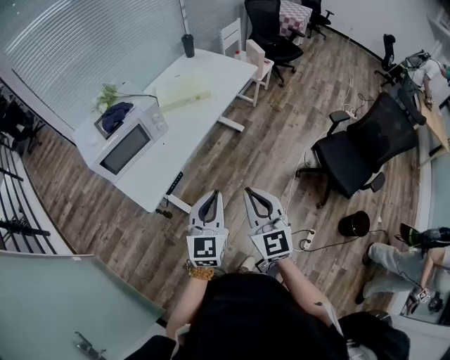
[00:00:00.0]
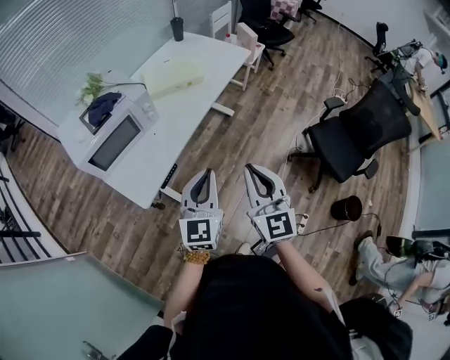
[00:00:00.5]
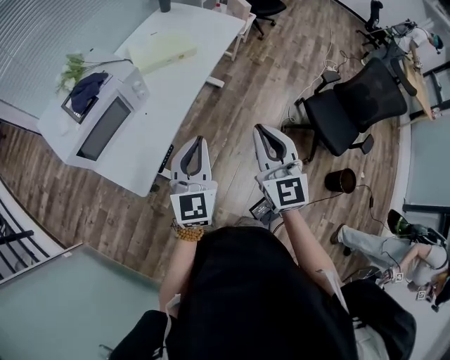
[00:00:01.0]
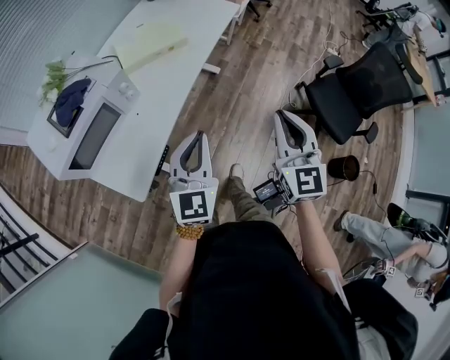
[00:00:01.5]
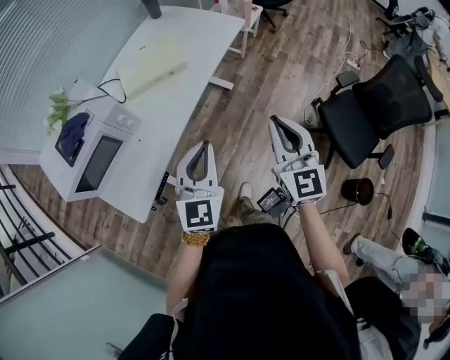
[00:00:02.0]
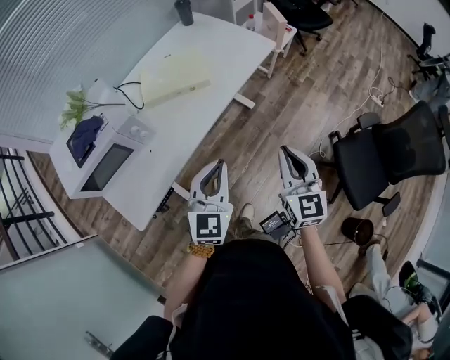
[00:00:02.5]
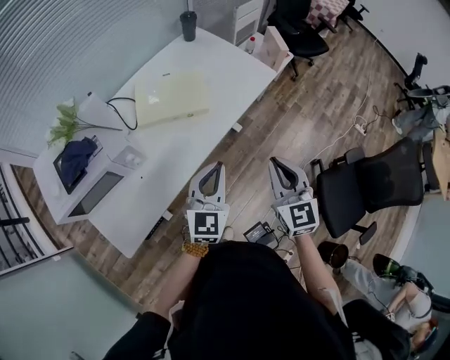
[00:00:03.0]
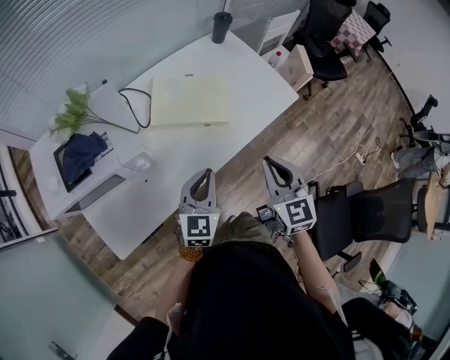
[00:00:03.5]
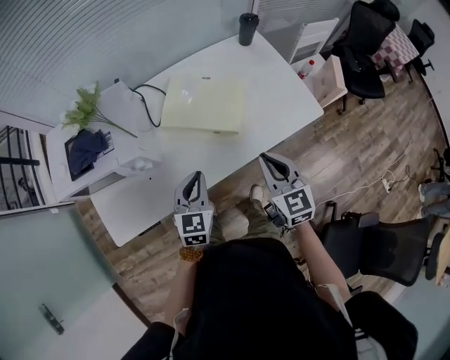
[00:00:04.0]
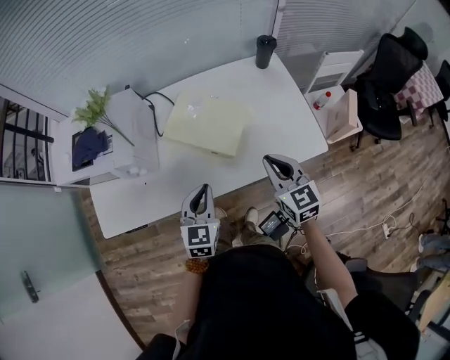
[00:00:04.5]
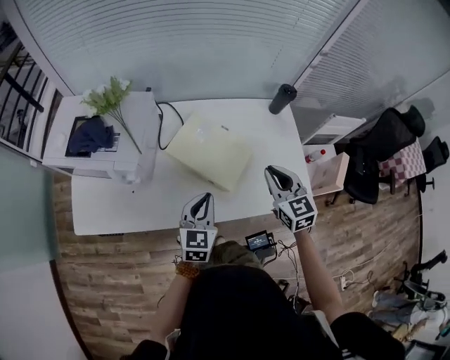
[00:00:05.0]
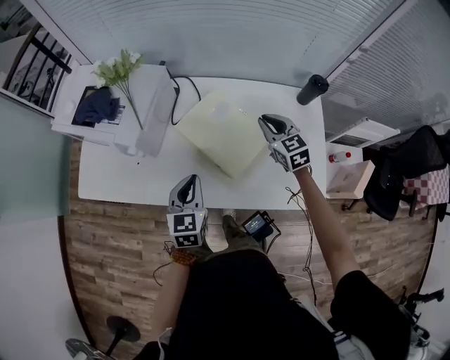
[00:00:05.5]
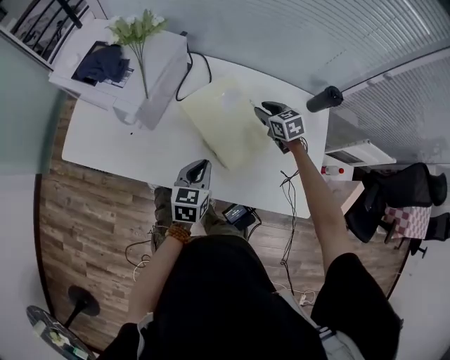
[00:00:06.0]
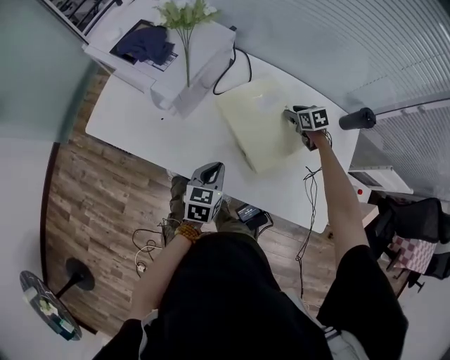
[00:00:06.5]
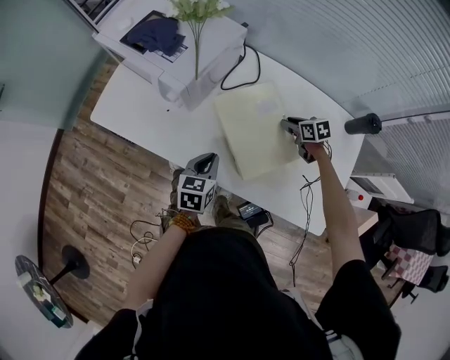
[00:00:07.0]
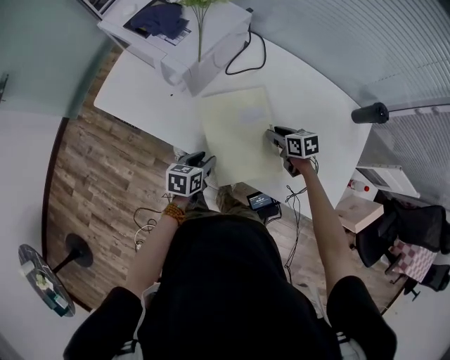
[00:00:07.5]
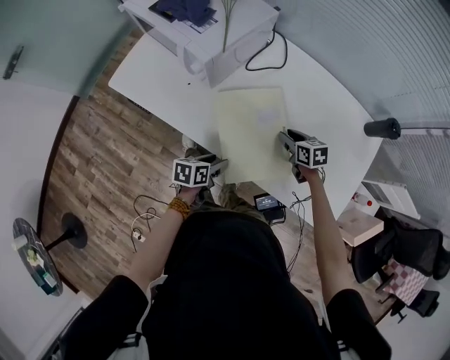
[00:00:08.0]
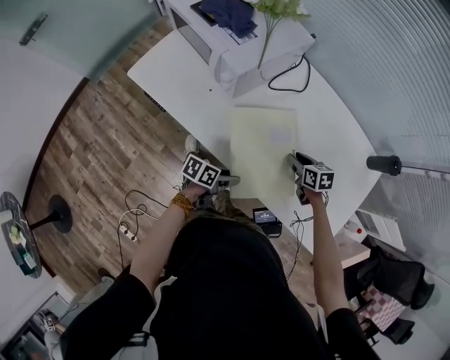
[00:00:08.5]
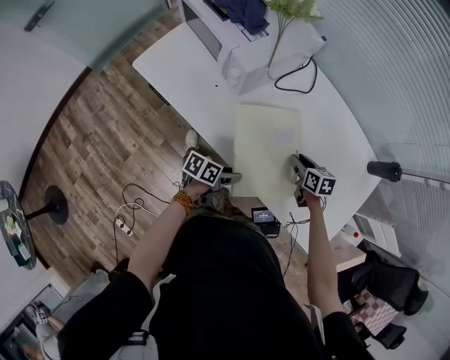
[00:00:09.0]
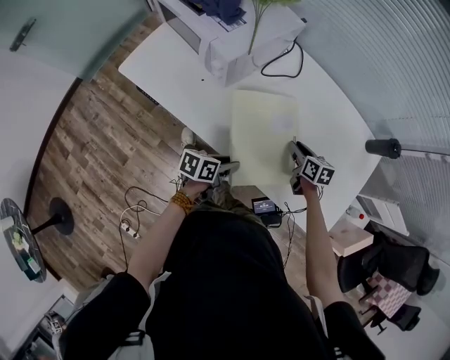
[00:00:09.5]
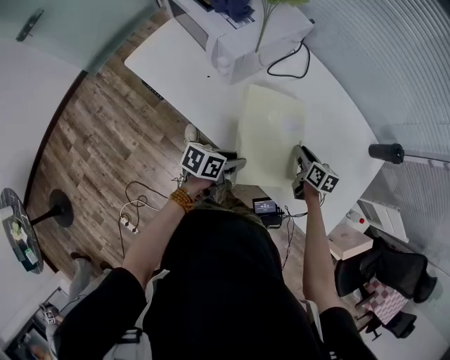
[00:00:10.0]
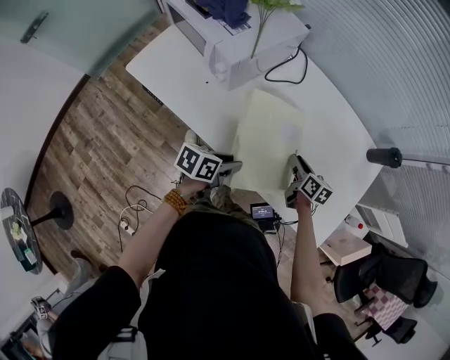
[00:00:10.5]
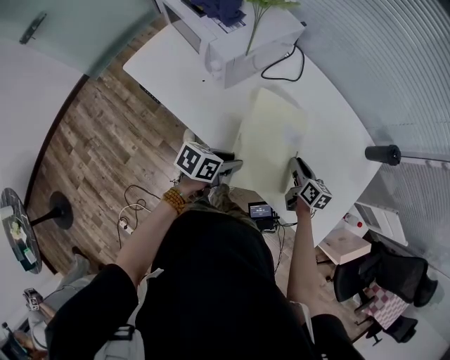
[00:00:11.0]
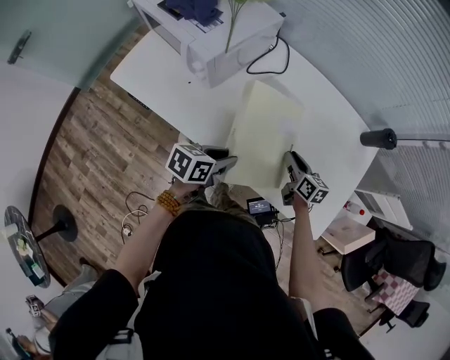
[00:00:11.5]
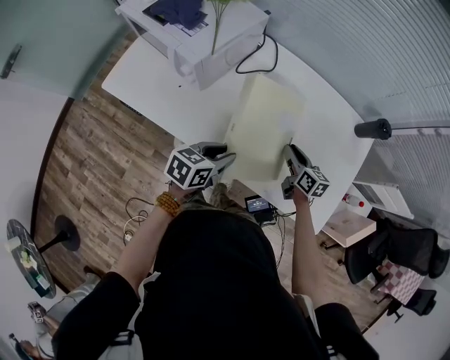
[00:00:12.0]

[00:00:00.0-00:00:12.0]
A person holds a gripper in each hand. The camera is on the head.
00:00:00.0 to 00:00:02.0: The grippers both shift forward by approximately 25 cm.
00:00:02.0 to 00:00:04.0: The left gripper ends up about 30 cm from where it was, and swivels some 40 degrees. The right gripper shifts by approximately 35 cm, and changes its angle by about 40 degrees.
00:00:04.0 to 00:00:06.0: The right gripper ends up approximately 40 cm from where it was, rotates some 50 degrees, and opens up. Meanwhile the left gripper shifts by about 15 cm, and swivels roughly 40 degrees.
00:00:06.0 to 00:00:08.0: The left gripper goes approximately 20 cm downward, to the left and backward, changes its angle by roughly 30 degrees, and opens. Meanwhile the right gripper goes roughly 15 cm to the left, backward and downward, and swivels approximately 20 degrees.
00:00:08.0 to 00:00:10.0: The left gripper moves upward, approximately 5 cm, and closes up.
00:00:10.0 to 00:00:12.0: The right gripper moves some 5 cm; the left gripper is displaced upward by roughly 5 cm, and changes its angle by roughly 20 degrees.

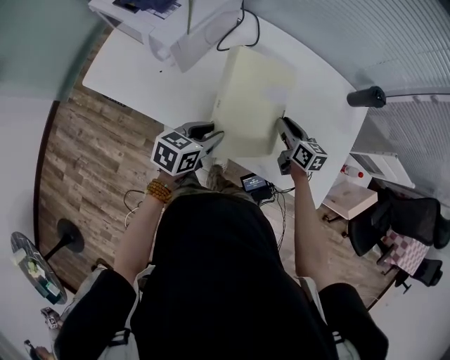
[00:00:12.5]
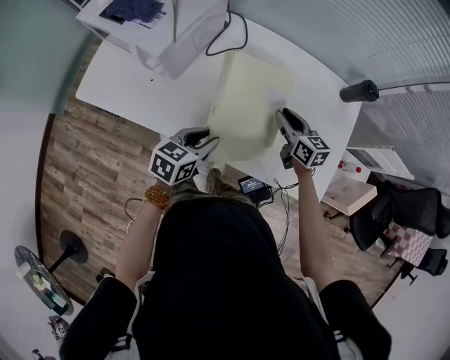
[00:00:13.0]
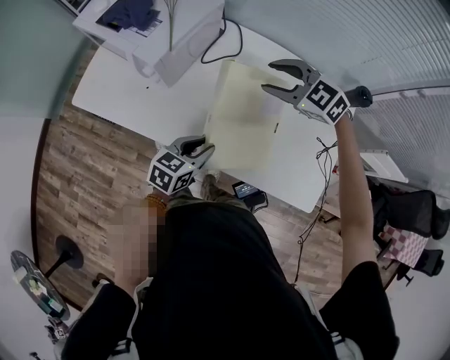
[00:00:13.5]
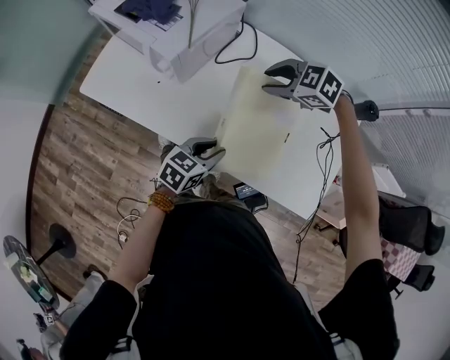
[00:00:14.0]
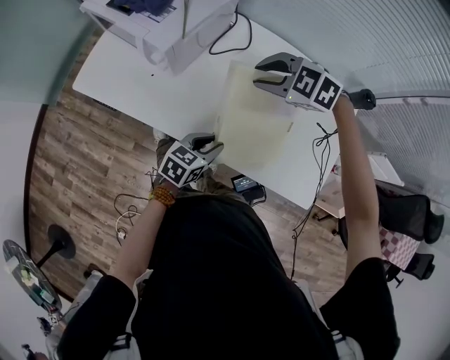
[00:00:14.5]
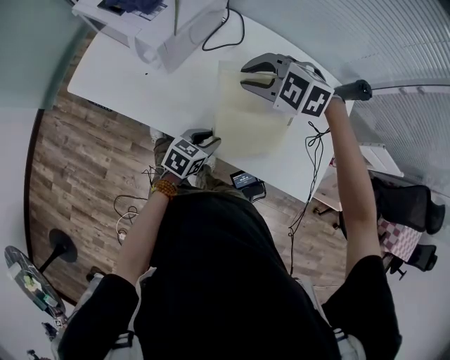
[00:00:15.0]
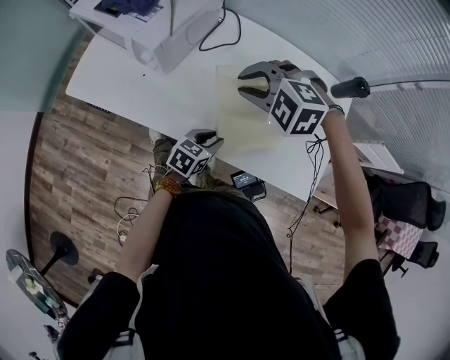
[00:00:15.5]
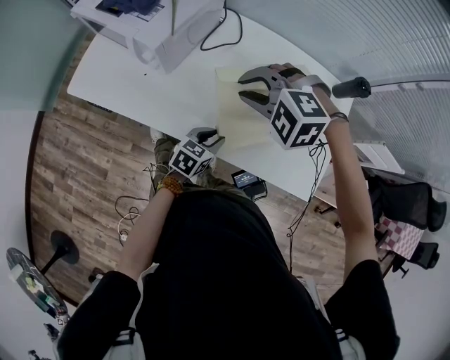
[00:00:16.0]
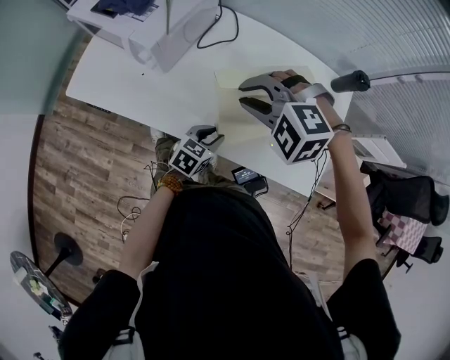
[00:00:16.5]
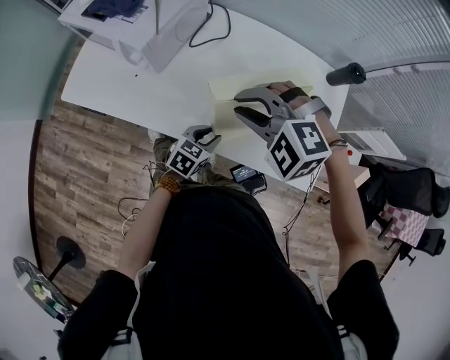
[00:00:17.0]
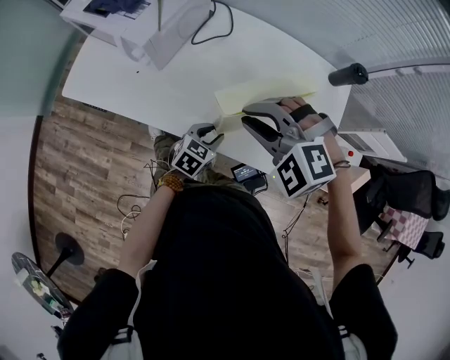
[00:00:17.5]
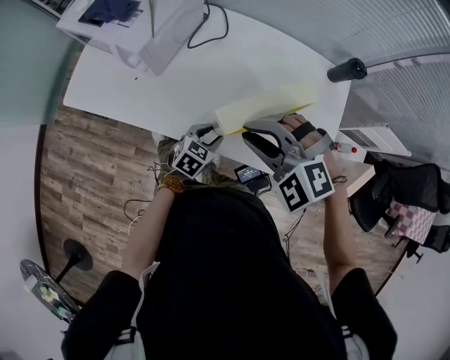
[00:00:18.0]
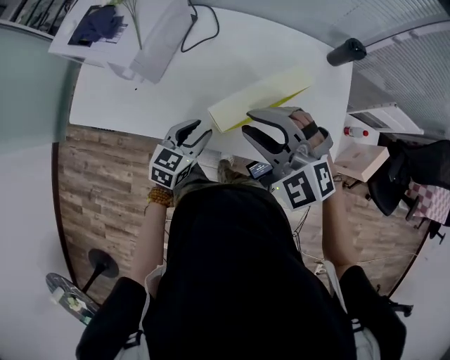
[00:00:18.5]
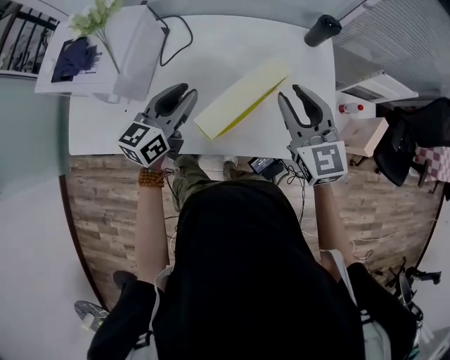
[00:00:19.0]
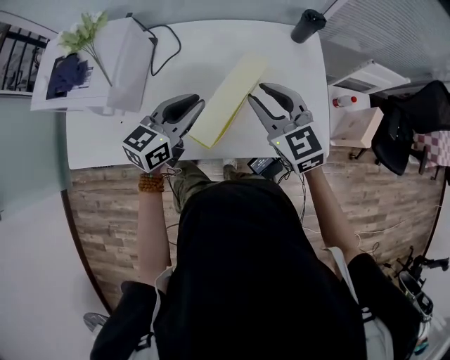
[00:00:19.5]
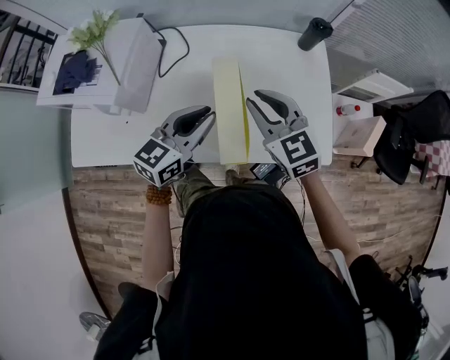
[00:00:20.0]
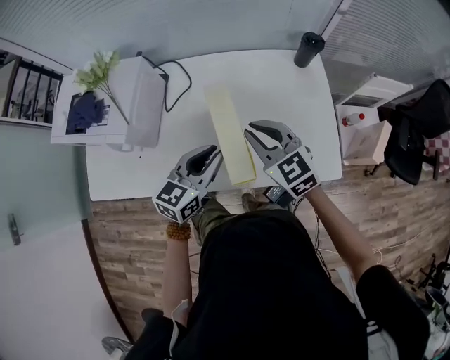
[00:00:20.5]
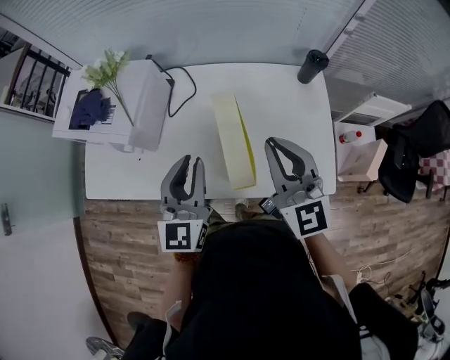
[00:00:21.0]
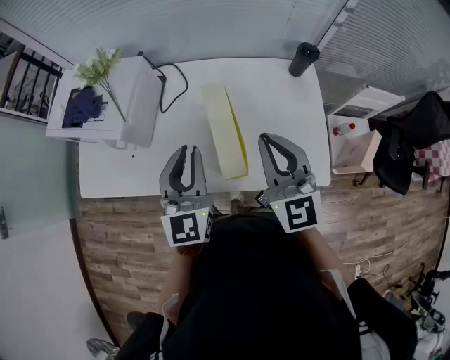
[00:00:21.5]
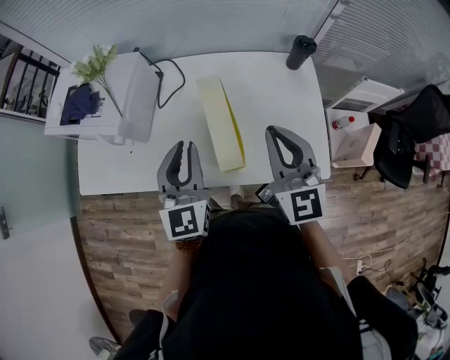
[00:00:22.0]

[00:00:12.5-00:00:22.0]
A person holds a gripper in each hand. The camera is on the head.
00:00:12.5 to 00:00:14.5: The right gripper goes approximately 15 cm upward, and rotates around the line of its fingers by approximately 70 degrees, counterclockwise from behind.
00:00:14.5 to 00:00:16.5: The right gripper ends up roughly 10 cm from where it was, and changes its angle by approximately 20 degrees. The left gripper ends up approximately 5 cm from where it was.
00:00:16.5 to 00:00:18.0: The right gripper goes some 10 cm backward.
00:00:18.0 to 00:00:20.0: The left gripper travels upward by approximately 20 cm, angles its fingers upward, by approximately 30 degrees, and closes its fingers, while the right gripper shifts roughly 10 cm forward and to the right, and twists roughly 50 degrees clockwise, seen from behind.
00:00:20.0 to 00:00:22.0: The grippers both shift upward by roughly 10 cm. The left gripper turns by roughly 40 degrees. The right gripper rotates roughly 20 degrees.

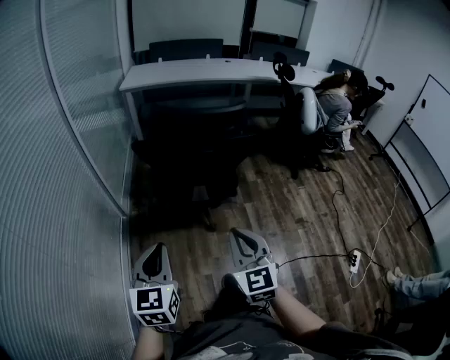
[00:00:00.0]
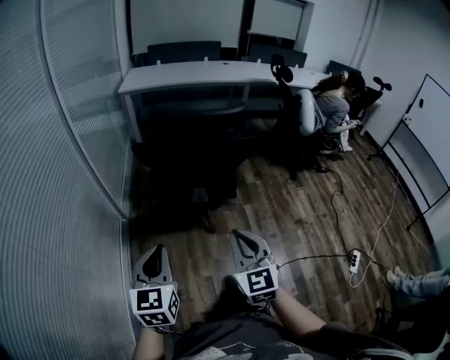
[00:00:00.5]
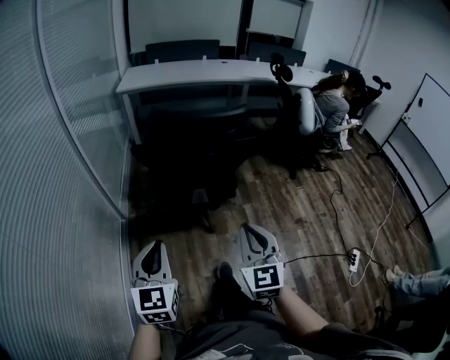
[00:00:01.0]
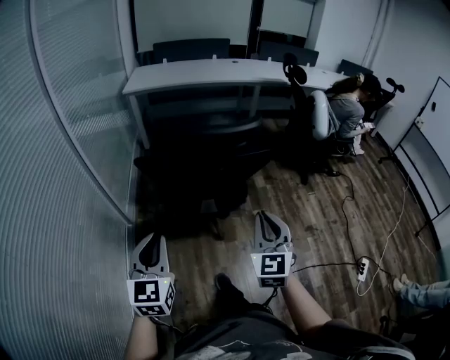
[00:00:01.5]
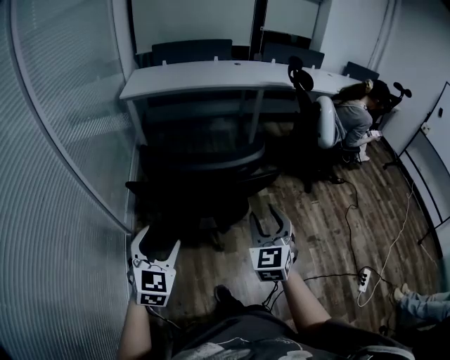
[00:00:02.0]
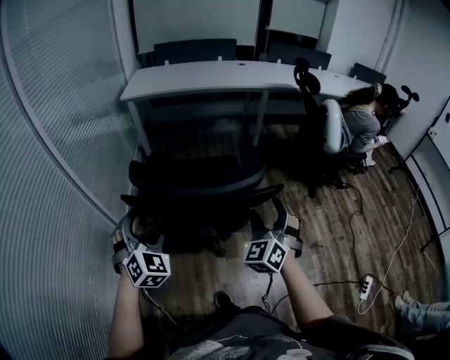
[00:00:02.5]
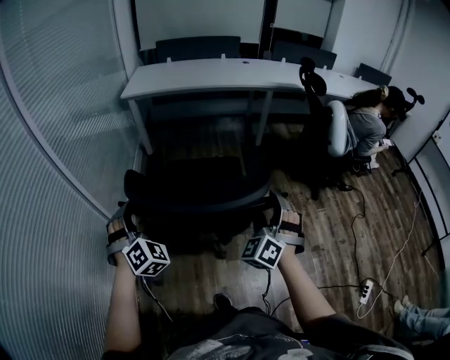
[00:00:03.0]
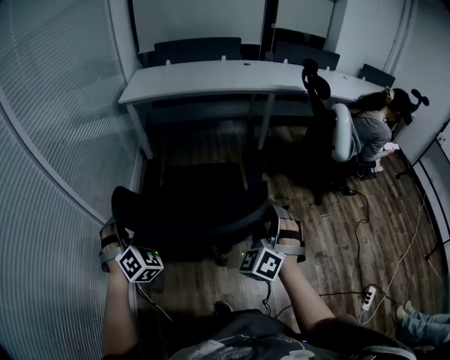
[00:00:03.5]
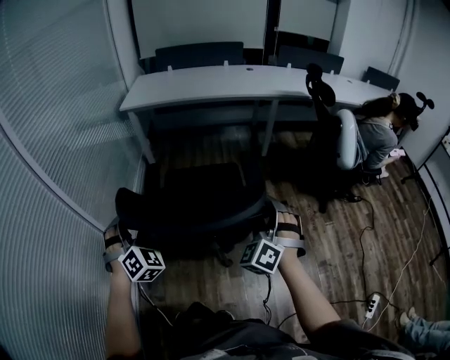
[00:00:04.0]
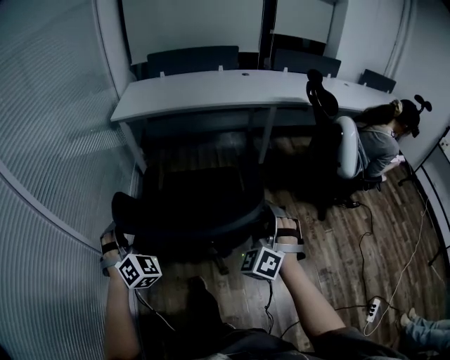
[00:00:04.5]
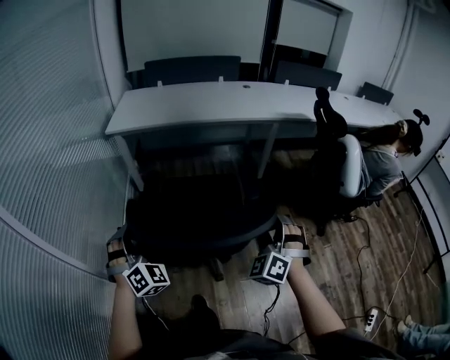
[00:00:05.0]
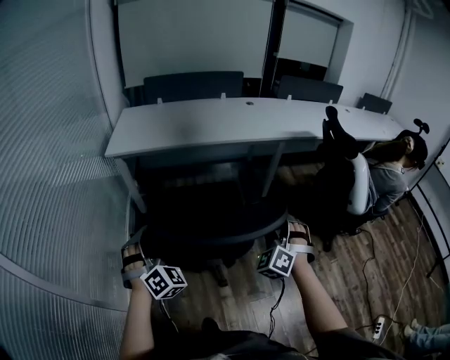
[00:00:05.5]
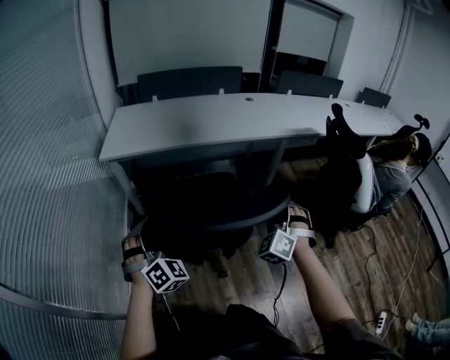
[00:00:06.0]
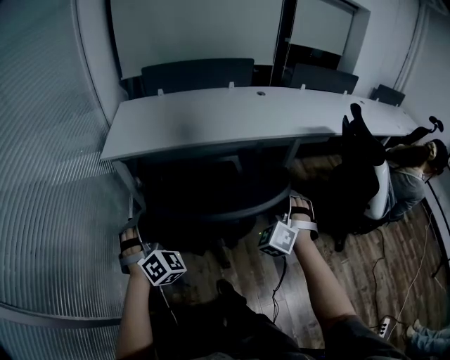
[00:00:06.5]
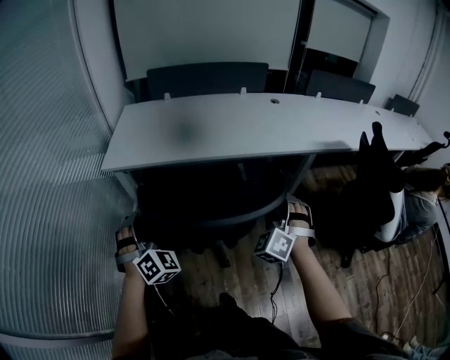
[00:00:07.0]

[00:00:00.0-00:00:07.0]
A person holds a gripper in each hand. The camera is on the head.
00:00:00.0 to 00:00:02.0: The right gripper heads forward and to the right, covering some 25 cm, and opens its fingers. Meanwhile the left gripper is displaced forward by some 20 cm, changes its angle by roughly 20 degrees, and opens.
00:00:02.0 to 00:00:03.5: Both grippers move forward, roughly 15 cm. The left gripper rotates some 40 degrees; the right gripper turns by approximately 40 degrees.
00:00:03.5 to 00:00:05.0: Both grippers move forward, roughly 25 cm.
00:00:05.0 to 00:00:07.0: The pair of grippers is taken forward, about 40 cm.
